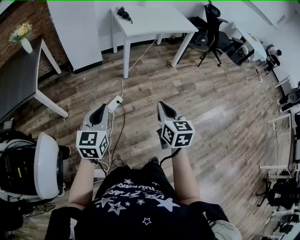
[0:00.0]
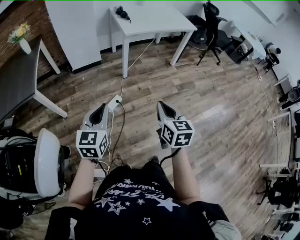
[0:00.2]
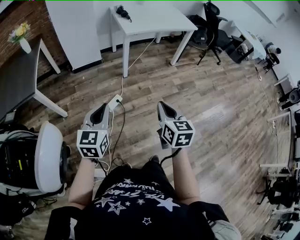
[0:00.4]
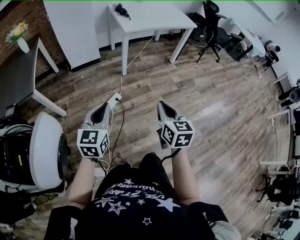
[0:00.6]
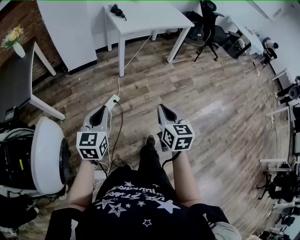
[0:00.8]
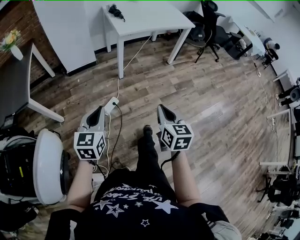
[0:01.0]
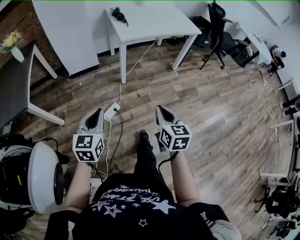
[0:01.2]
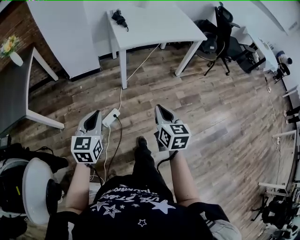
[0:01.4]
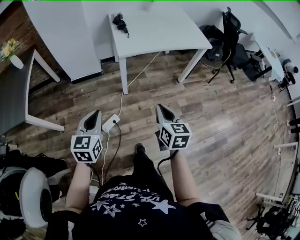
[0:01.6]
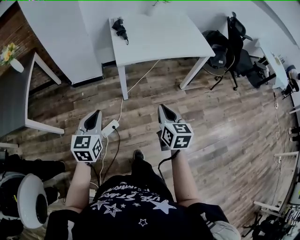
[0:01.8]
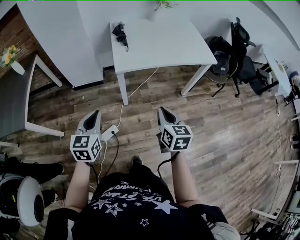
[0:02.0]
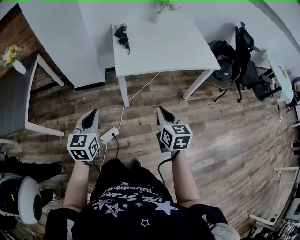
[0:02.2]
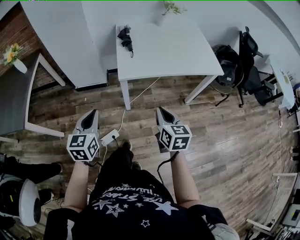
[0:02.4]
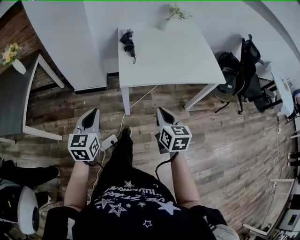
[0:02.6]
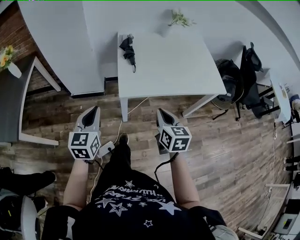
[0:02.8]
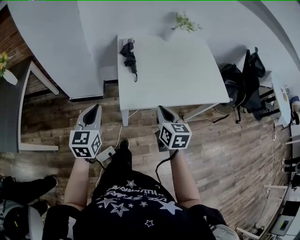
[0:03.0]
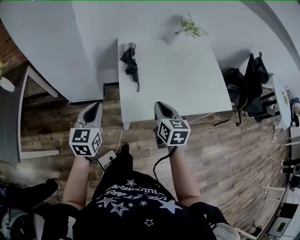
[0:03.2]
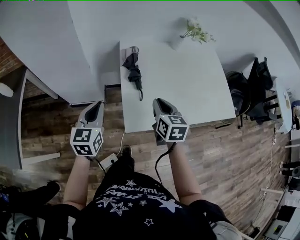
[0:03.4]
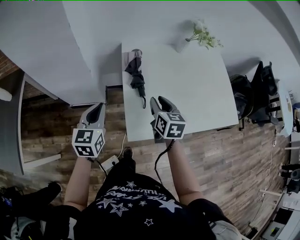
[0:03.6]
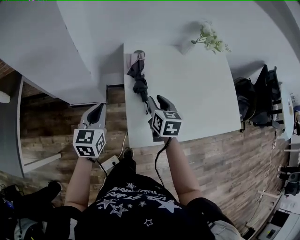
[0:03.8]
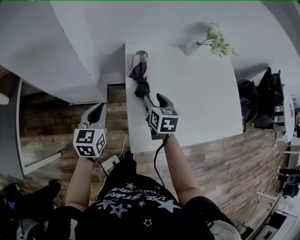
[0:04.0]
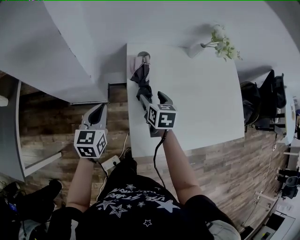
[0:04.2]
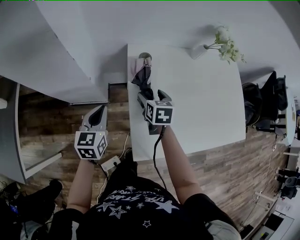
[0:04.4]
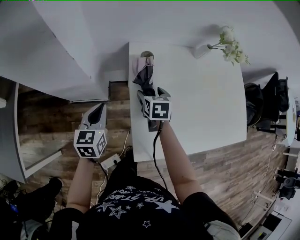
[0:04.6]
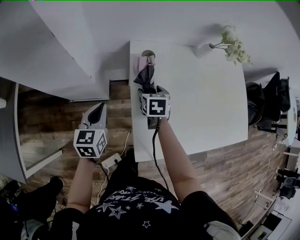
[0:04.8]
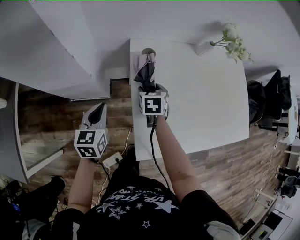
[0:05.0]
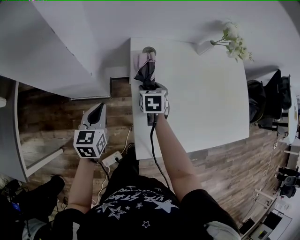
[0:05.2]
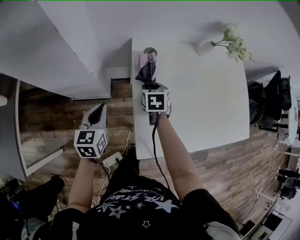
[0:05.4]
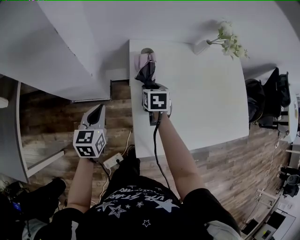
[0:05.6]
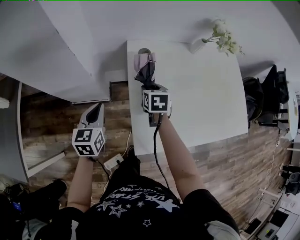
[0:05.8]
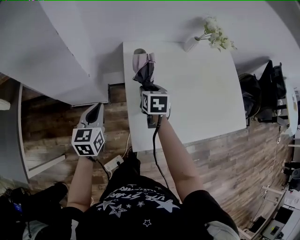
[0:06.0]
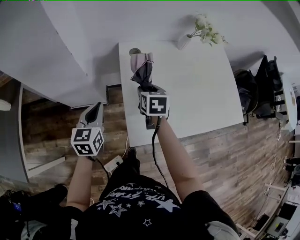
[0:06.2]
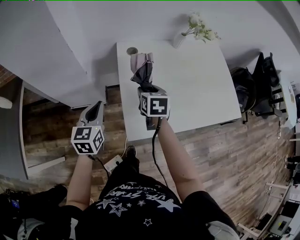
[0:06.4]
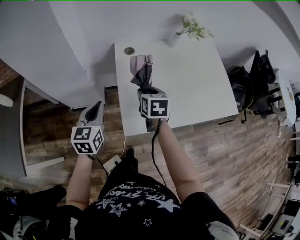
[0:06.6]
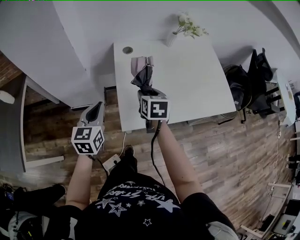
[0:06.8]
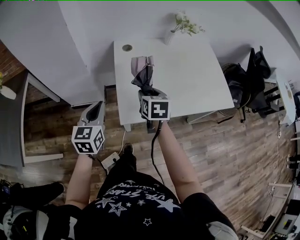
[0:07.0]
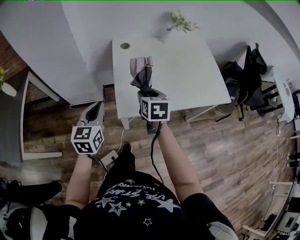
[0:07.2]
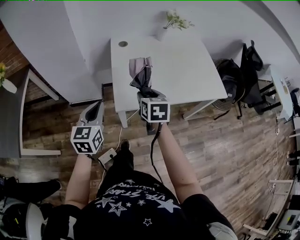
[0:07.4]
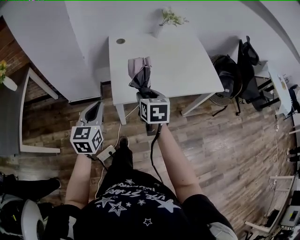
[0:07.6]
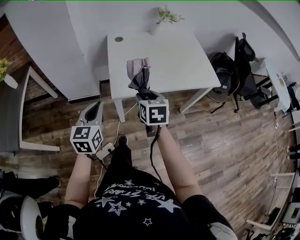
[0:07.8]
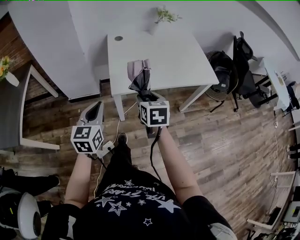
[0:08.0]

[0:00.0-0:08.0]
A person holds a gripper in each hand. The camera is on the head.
0:00.0 to 0:01.6: Both grippers travel together forward, about 30 cm.
0:01.6 to 0:03.2: The two grippers travel together, forward, approximately 40 cm.
0:03.2 to 0:04.8: The grippers both shift forward and downward by some 30 cm. The right gripper rotates some 20 degrees, and opens its fingers.
0:04.8 to 0:06.4: The left gripper is displaced backward and upward by roughly 10 cm, while the right gripper is displaced upward and backward by some 15 cm, and closes.
0:06.4 to 0:08.0: Both grippers travel together backward, about 30 cm.

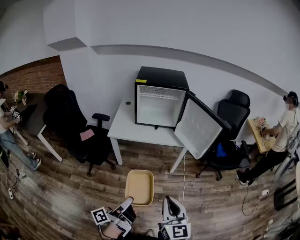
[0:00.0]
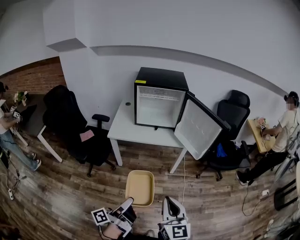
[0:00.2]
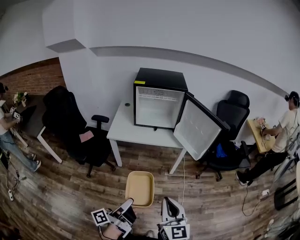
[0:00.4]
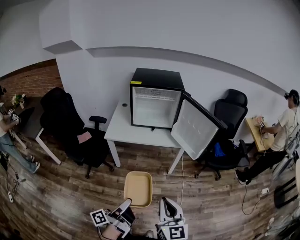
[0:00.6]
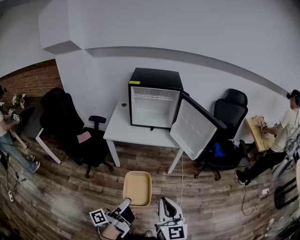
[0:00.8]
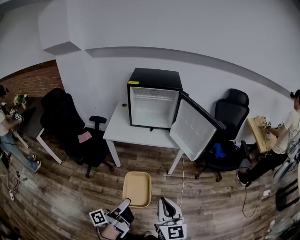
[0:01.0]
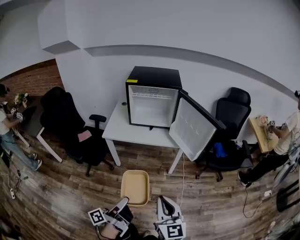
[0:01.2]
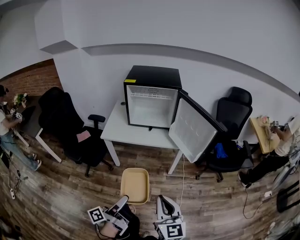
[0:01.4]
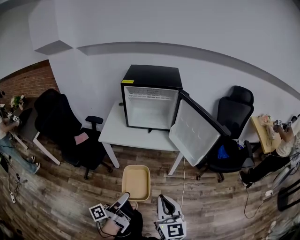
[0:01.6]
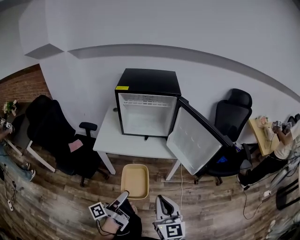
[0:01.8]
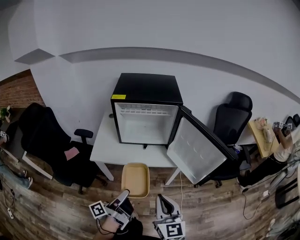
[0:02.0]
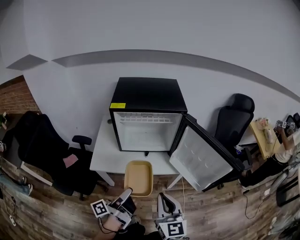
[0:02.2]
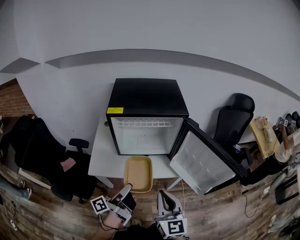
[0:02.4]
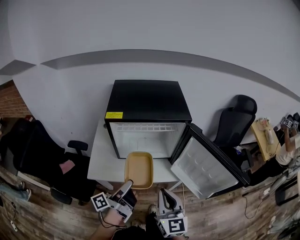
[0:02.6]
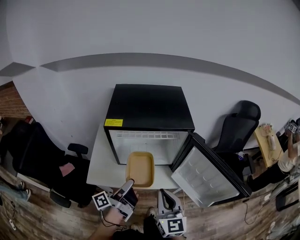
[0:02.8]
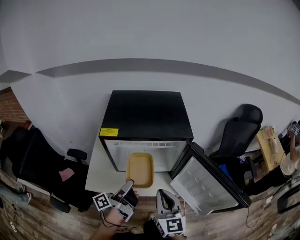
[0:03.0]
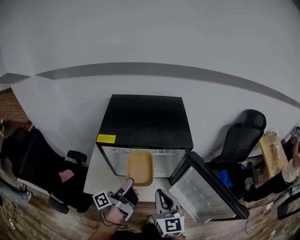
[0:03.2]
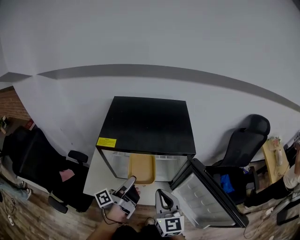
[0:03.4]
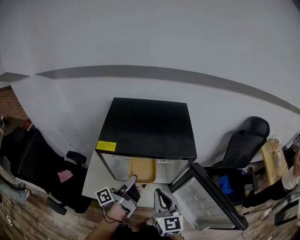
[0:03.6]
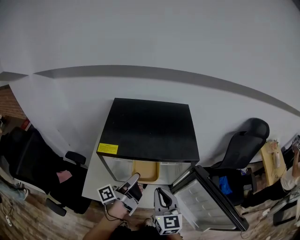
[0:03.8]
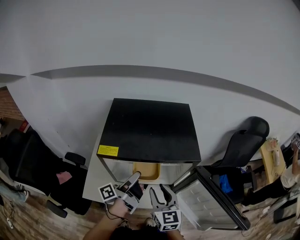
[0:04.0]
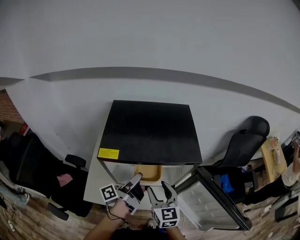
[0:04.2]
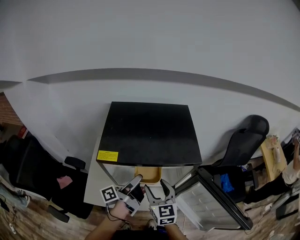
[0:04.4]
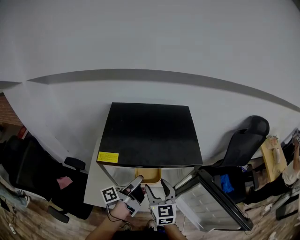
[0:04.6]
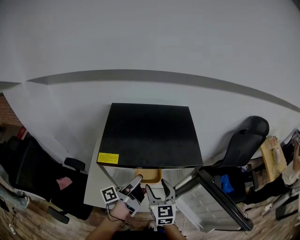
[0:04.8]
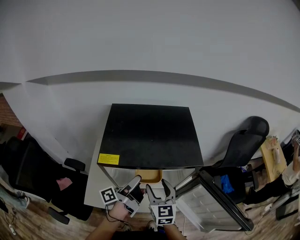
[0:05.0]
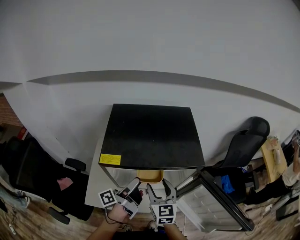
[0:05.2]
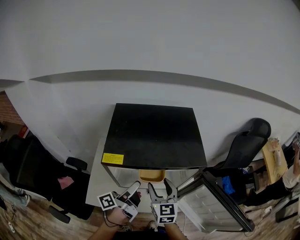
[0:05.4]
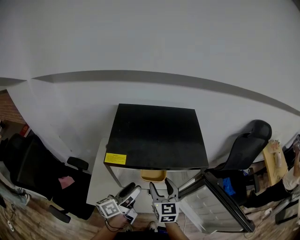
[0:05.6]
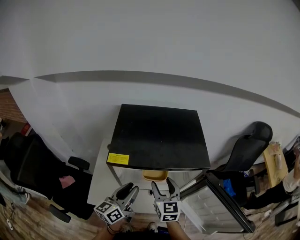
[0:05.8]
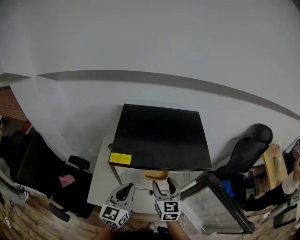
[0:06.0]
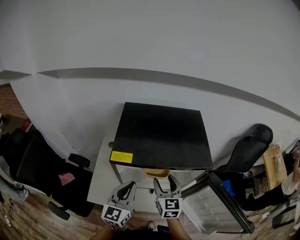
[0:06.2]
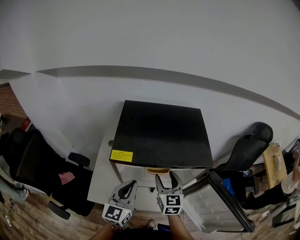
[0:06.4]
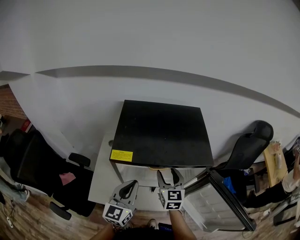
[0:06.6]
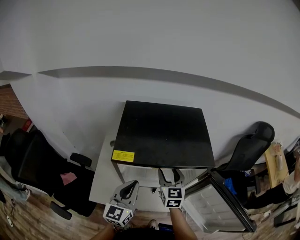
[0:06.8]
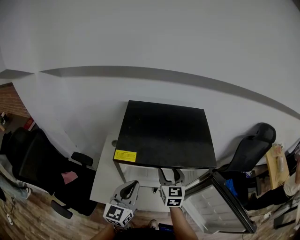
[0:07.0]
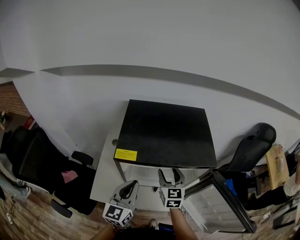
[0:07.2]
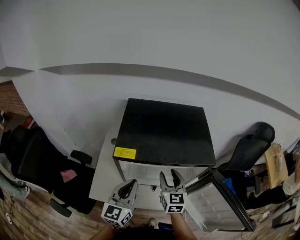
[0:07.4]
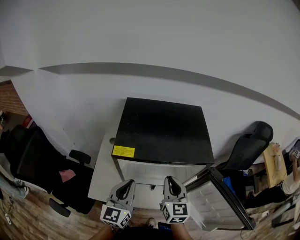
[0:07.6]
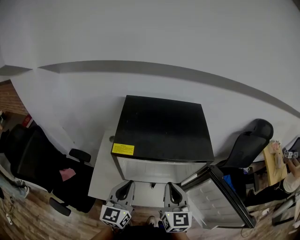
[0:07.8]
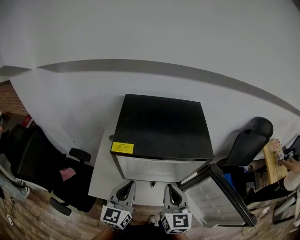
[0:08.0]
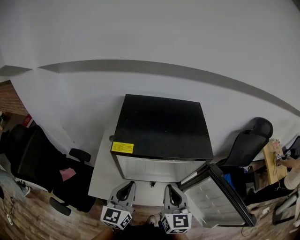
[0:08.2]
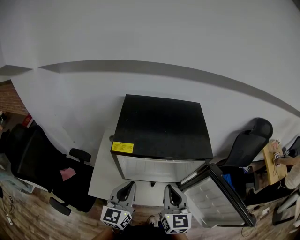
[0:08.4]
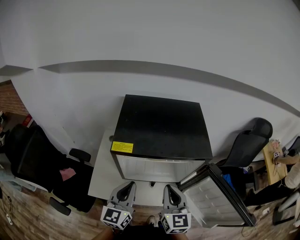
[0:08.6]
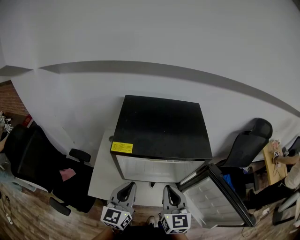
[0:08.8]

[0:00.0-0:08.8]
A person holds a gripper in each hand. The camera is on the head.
0:00.0 to 0:01.4: The left gripper goes roughly 10 cm to the right and forward, while the right gripper is displaced forward and to the right by some 10 cm.
0:01.4 to 0:03.0: Both grippers are carried forward, roughly 50 cm.
0:03.0 to 0:04.4: The grippers both shift forward by some 15 cm. The right gripper opens.
0:04.4 to 0:05.8: The left gripper goes roughly 5 cm to the left, rotates around the line of its fingers by approximately 50 degrees, clockwise from behind, and opens, then closes again.
0:05.8 to 0:07.4: The left gripper turns by some 30 degrees, and closes up.
0:07.4 to 0:08.8: The right gripper is displaced backward and upward by about 10 cm, and closes.

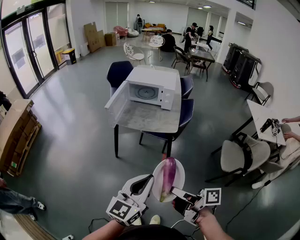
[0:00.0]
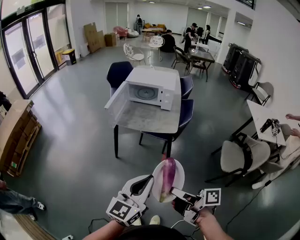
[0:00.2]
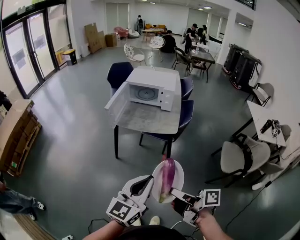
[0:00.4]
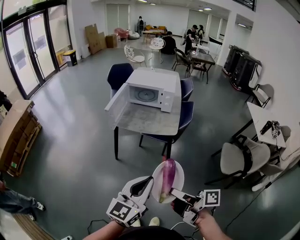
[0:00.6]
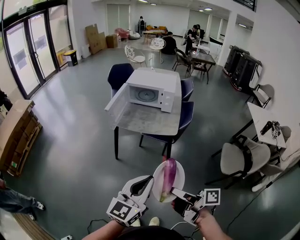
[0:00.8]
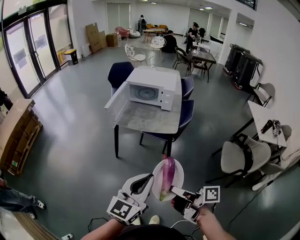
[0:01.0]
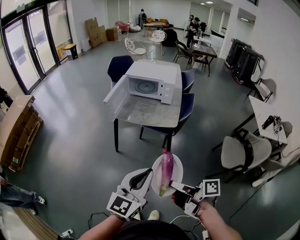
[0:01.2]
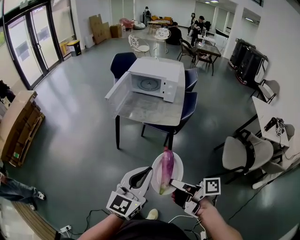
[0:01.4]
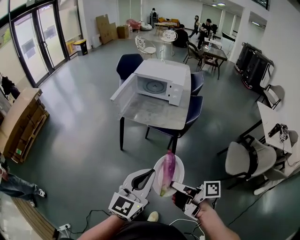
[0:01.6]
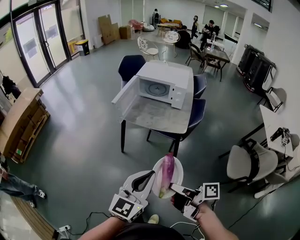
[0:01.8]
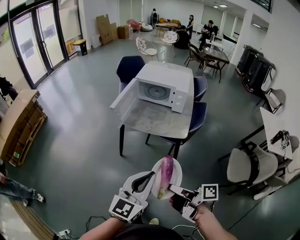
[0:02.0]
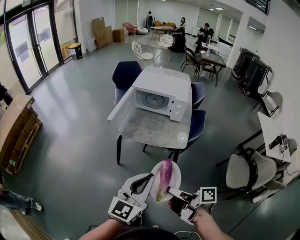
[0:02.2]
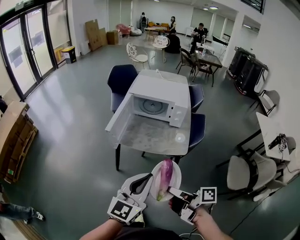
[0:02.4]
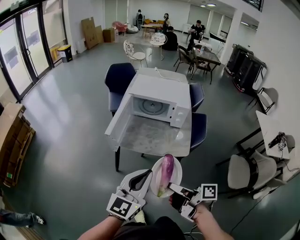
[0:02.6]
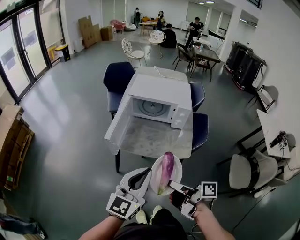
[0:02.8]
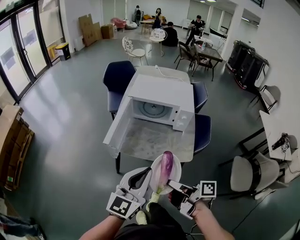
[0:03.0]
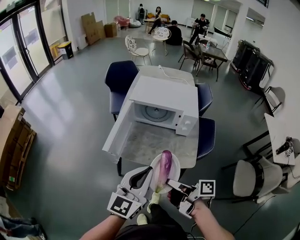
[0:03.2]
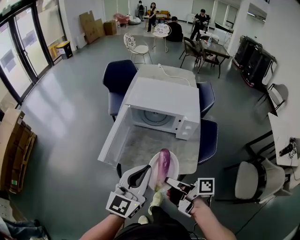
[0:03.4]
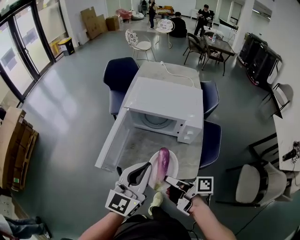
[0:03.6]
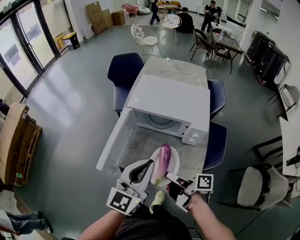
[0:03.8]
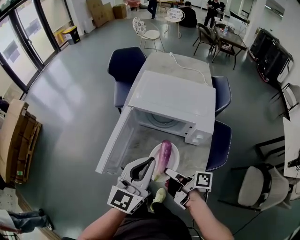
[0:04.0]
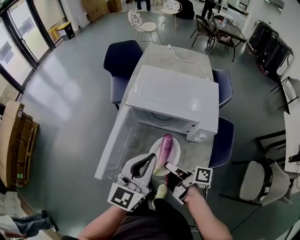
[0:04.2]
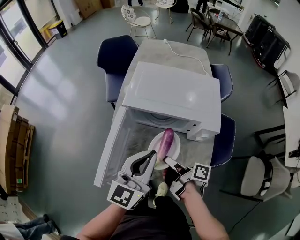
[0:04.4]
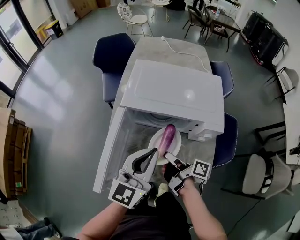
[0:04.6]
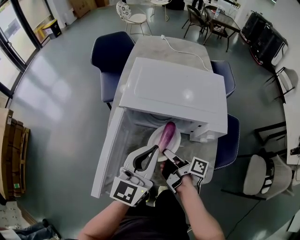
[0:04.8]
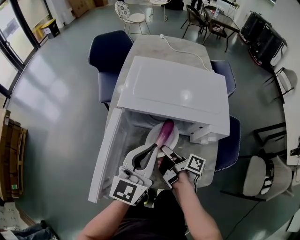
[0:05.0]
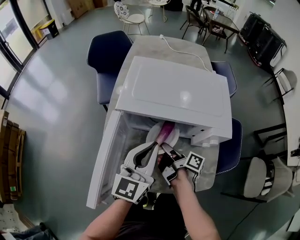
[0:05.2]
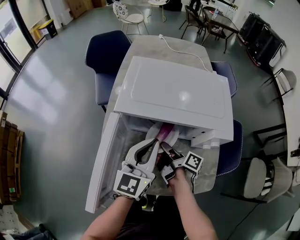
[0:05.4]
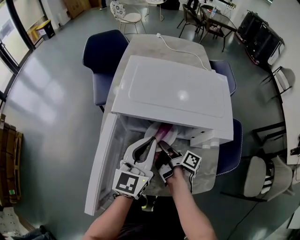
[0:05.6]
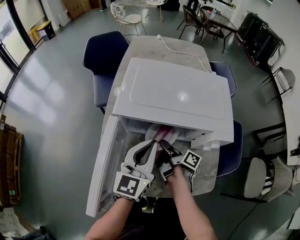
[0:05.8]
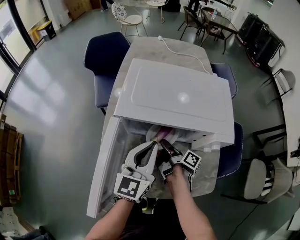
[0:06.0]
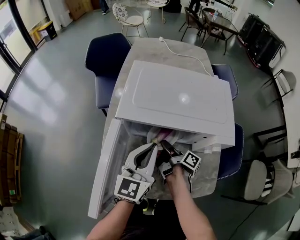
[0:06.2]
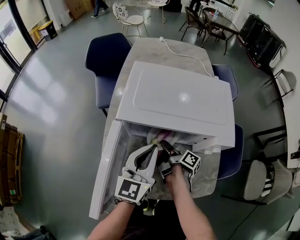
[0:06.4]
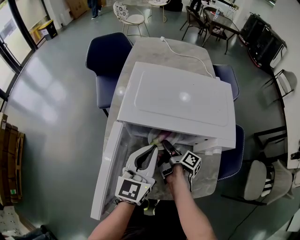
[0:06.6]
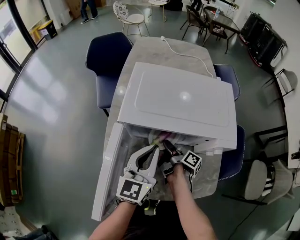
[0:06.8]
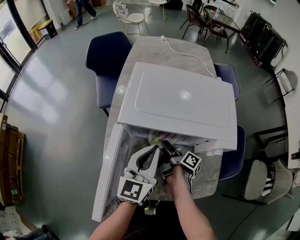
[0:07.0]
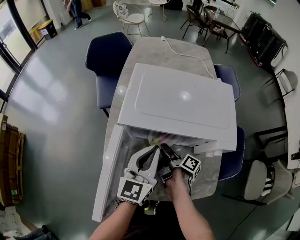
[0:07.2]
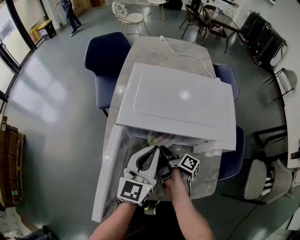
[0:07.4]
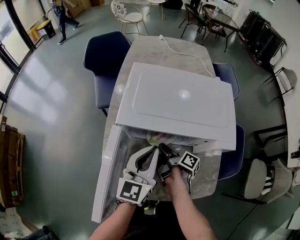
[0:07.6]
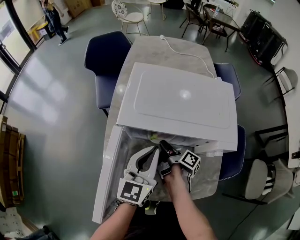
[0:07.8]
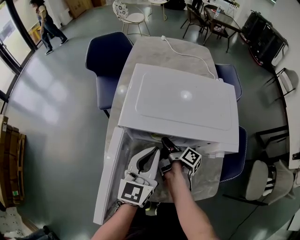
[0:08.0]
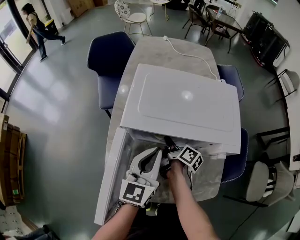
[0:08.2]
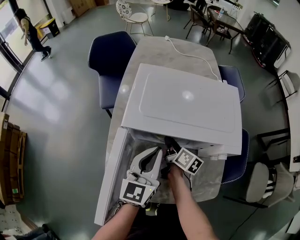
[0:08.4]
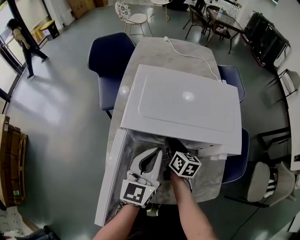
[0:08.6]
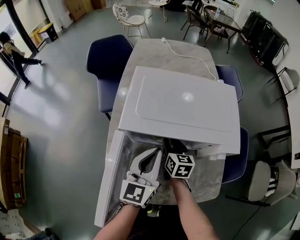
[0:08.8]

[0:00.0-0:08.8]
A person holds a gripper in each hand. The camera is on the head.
0:01.4 to 0:03.0: The left gripper moves some 35 cm.
0:03.0 to 0:04.4: The left gripper changes place by about 30 cm.
0:04.4 to 0:05.8: The left gripper travels downward by about 10 cm.
